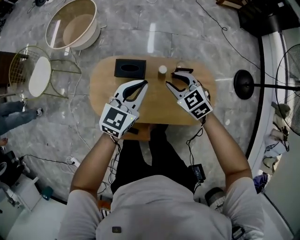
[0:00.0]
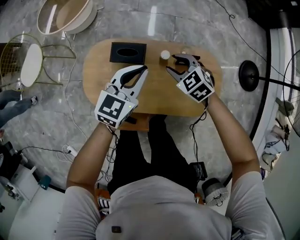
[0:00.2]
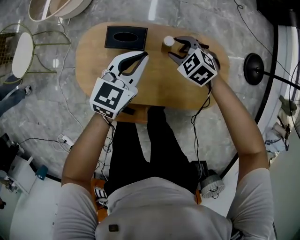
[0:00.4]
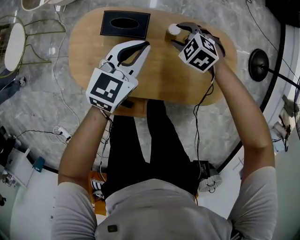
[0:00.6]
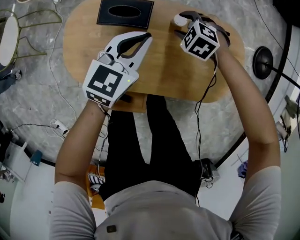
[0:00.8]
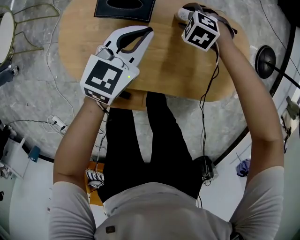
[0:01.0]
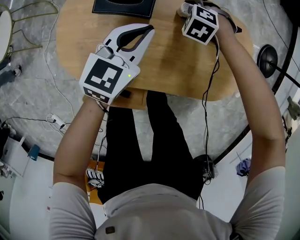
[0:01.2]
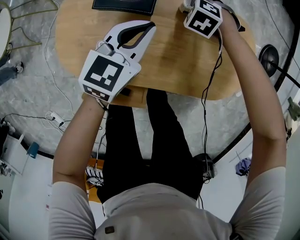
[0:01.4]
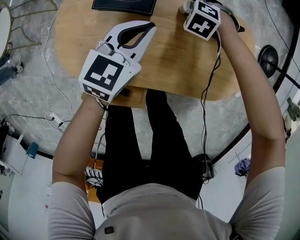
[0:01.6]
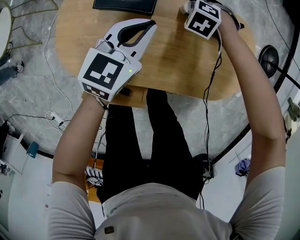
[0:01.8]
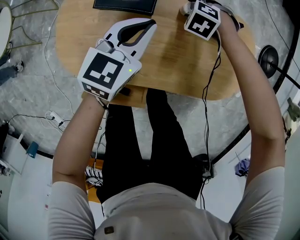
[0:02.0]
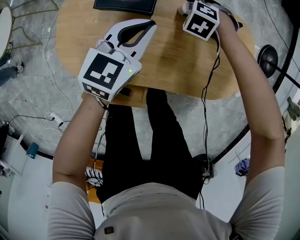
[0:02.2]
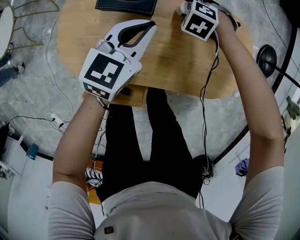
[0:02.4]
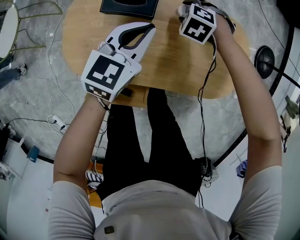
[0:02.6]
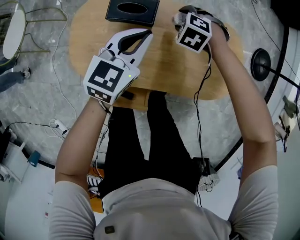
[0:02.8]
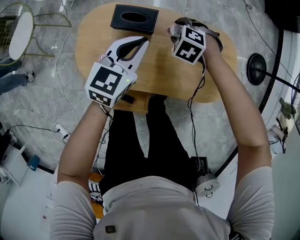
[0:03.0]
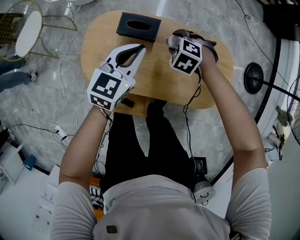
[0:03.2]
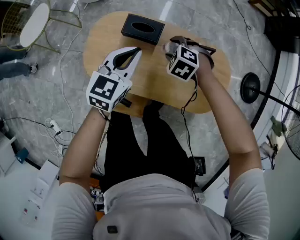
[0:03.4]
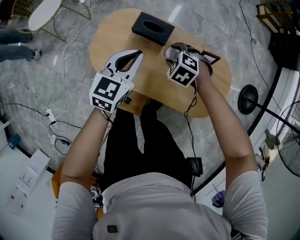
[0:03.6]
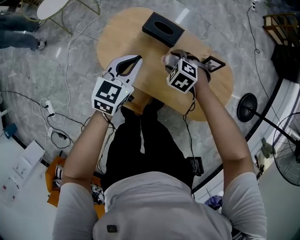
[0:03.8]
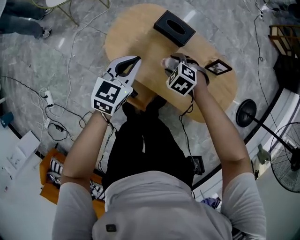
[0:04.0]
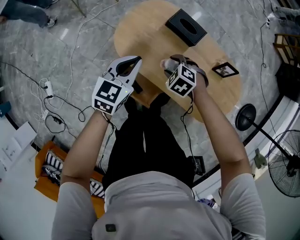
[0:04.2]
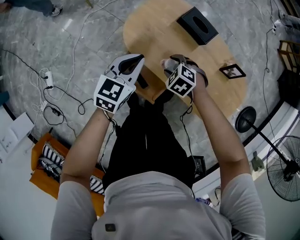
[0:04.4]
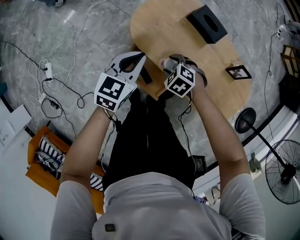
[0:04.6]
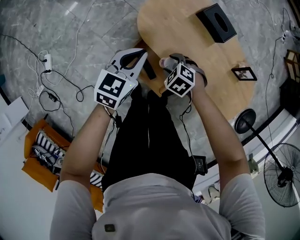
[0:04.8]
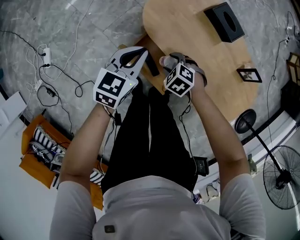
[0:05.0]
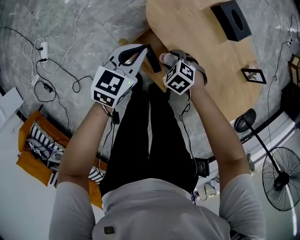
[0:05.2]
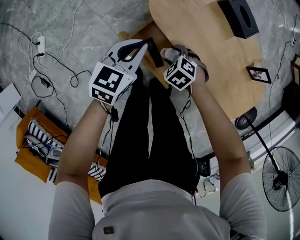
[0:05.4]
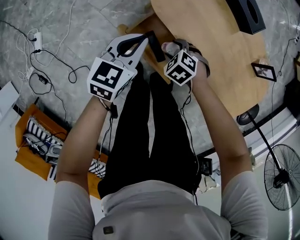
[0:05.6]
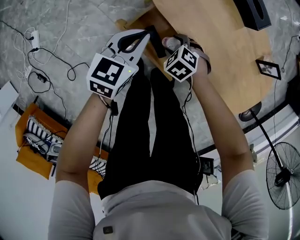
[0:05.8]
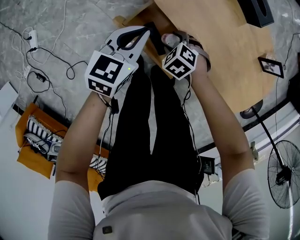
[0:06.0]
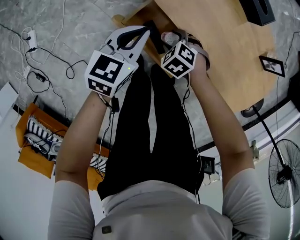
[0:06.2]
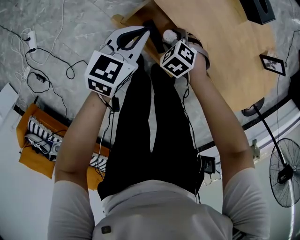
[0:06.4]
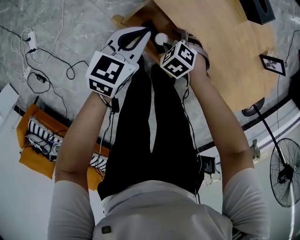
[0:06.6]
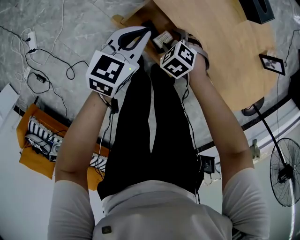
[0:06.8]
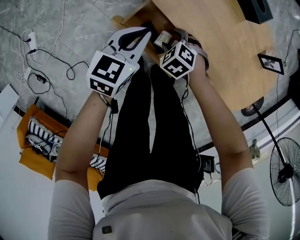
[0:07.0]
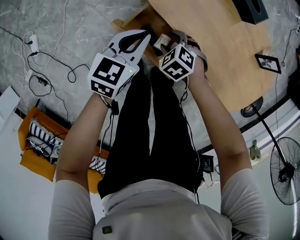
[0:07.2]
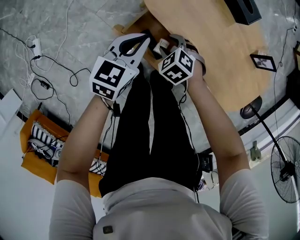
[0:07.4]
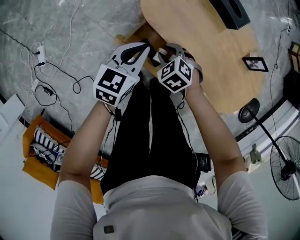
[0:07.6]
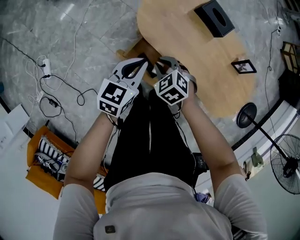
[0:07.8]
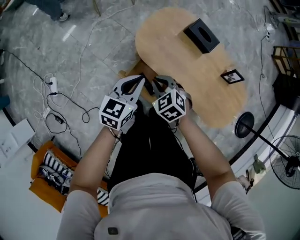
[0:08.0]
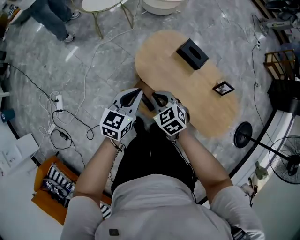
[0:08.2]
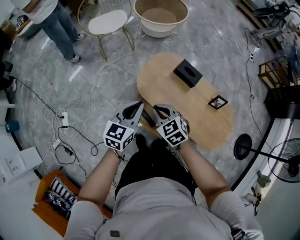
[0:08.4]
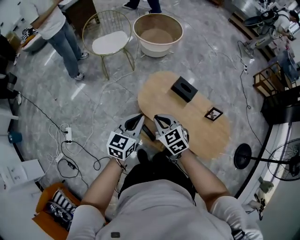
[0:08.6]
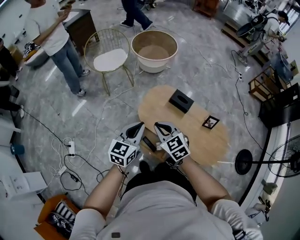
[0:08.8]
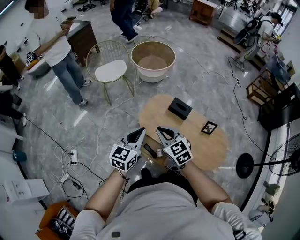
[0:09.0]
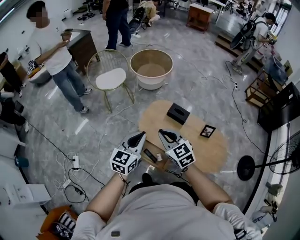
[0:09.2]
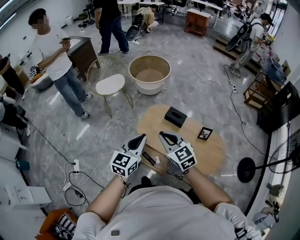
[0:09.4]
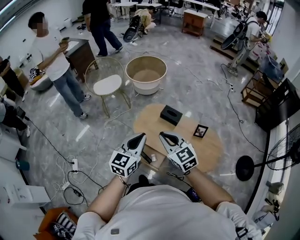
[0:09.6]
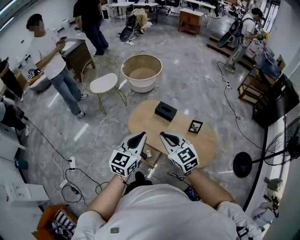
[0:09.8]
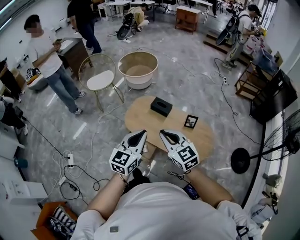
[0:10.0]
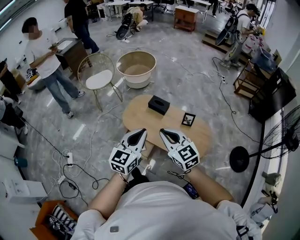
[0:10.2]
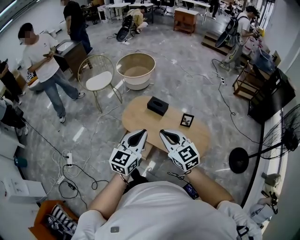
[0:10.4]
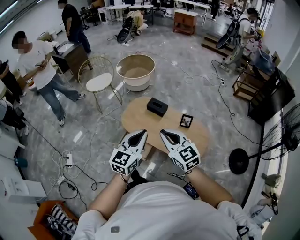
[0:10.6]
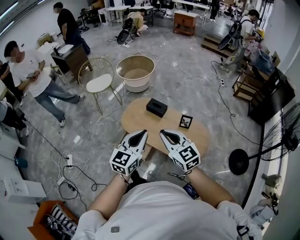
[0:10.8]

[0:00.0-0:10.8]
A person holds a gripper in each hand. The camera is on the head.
0:00.0 to 0:01.6: The two grippers go about 35 cm downward. The right gripper tips its fingers downward by about 40 degrees, and opens its fingers.
0:01.6 to 0:03.0: Both grippers travel together upward, approximately 15 cm.
0:03.0 to 0:04.6: The right gripper changes place by about 35 cm, and rotates roughly 30 degrees. The left gripper changes place by approximately 35 cm, and changes its angle by about 30 degrees.
0:04.6 to 0:06.2: The grippers both shift downward by some 20 cm.
0:06.2 to 0:07.8: Both grippers move upward, about 20 cm. The right gripper turns by approximately 20 degrees, and closes up.
0:07.8 to 0:09.2: The two grippers go about 40 cm upward. The left gripper turns by approximately 20 degrees, while the right gripper angles its fingers upward, by about 40 degrees.
0:09.2 to 0:10.8: Both grippers travel together to the right and backward, roughly 30 cm.

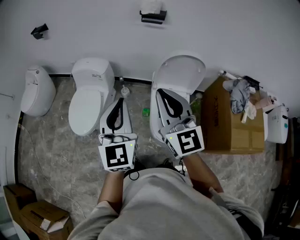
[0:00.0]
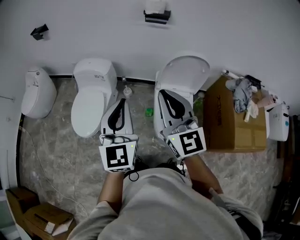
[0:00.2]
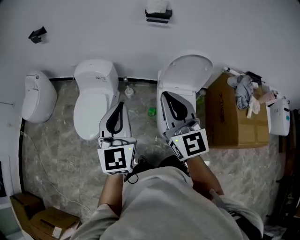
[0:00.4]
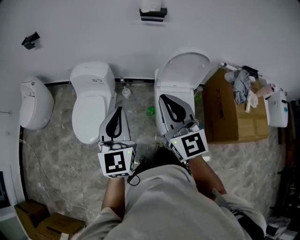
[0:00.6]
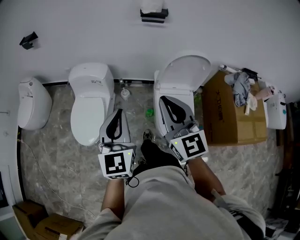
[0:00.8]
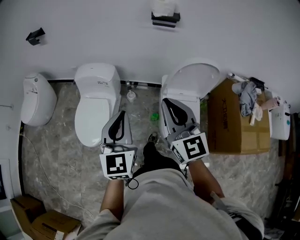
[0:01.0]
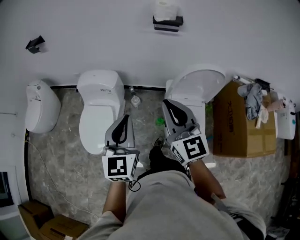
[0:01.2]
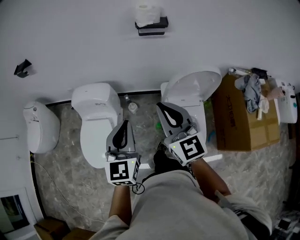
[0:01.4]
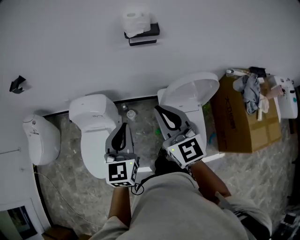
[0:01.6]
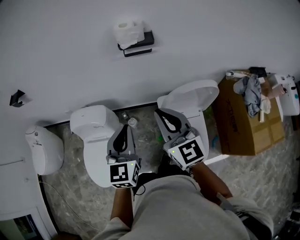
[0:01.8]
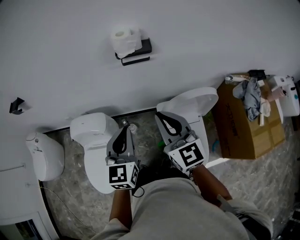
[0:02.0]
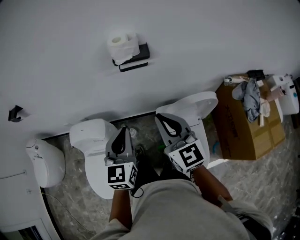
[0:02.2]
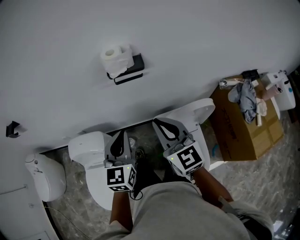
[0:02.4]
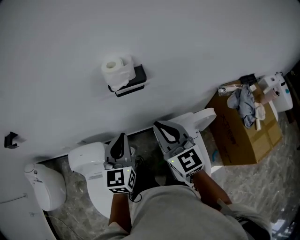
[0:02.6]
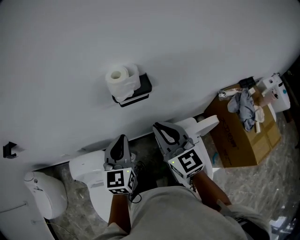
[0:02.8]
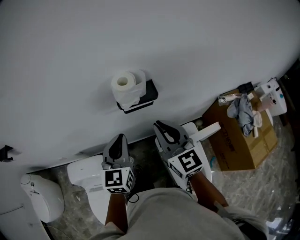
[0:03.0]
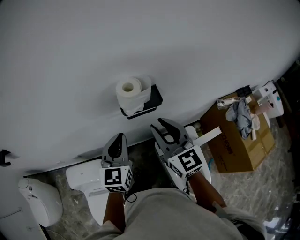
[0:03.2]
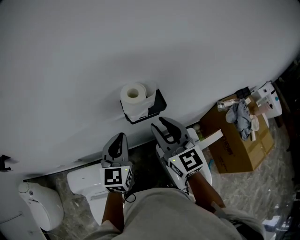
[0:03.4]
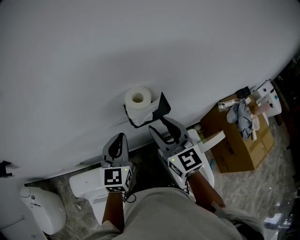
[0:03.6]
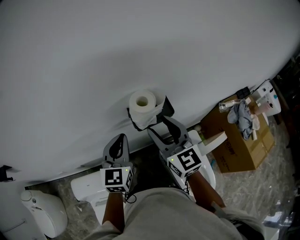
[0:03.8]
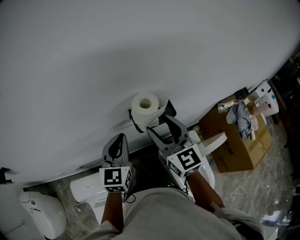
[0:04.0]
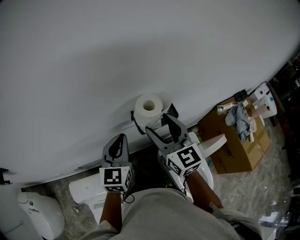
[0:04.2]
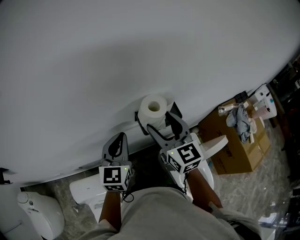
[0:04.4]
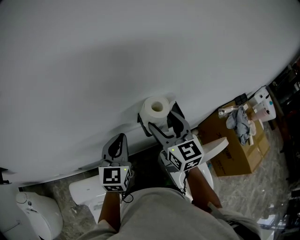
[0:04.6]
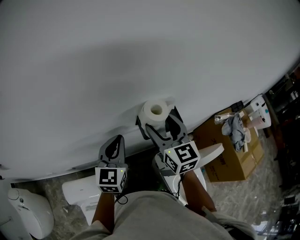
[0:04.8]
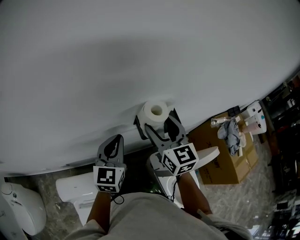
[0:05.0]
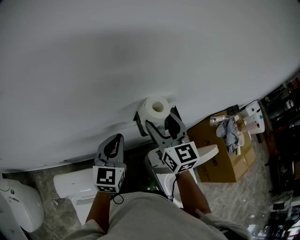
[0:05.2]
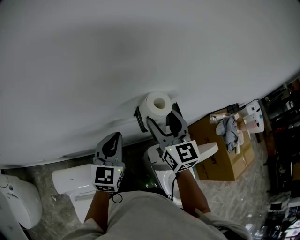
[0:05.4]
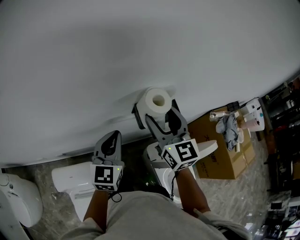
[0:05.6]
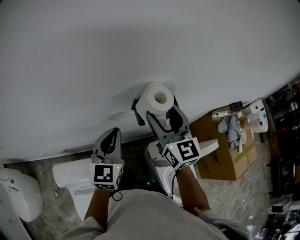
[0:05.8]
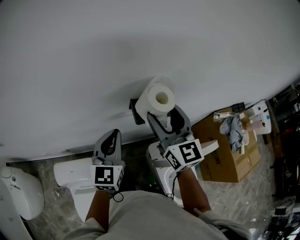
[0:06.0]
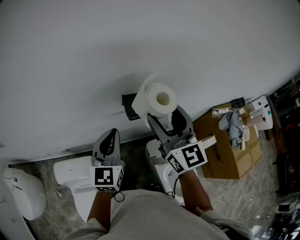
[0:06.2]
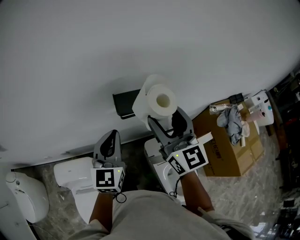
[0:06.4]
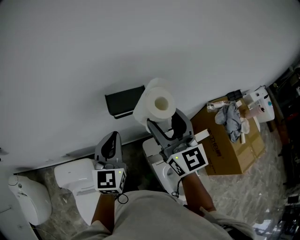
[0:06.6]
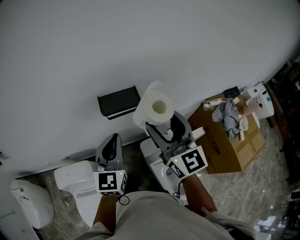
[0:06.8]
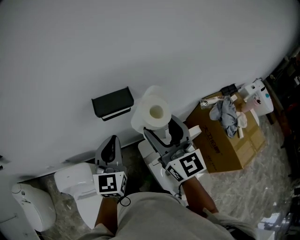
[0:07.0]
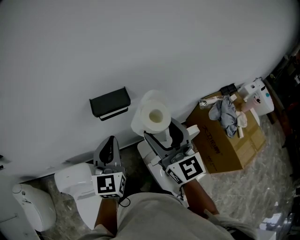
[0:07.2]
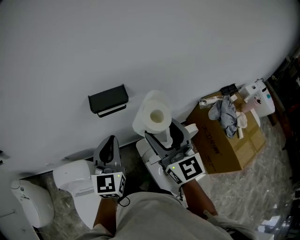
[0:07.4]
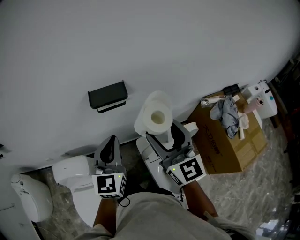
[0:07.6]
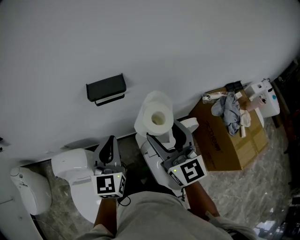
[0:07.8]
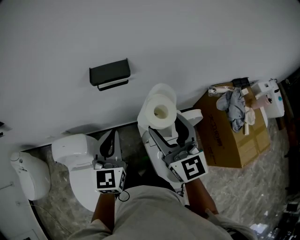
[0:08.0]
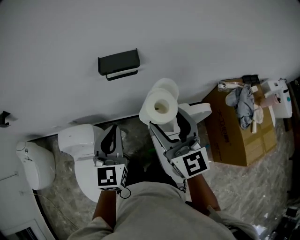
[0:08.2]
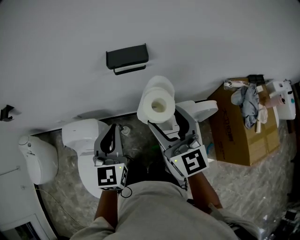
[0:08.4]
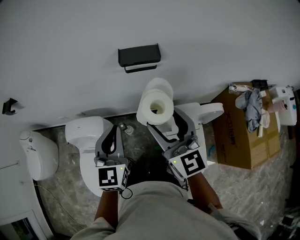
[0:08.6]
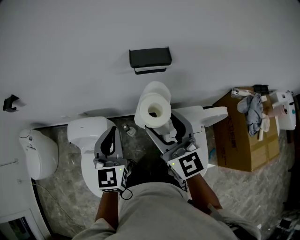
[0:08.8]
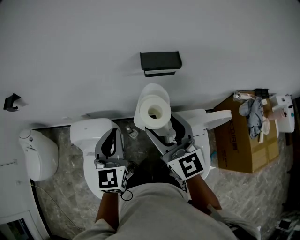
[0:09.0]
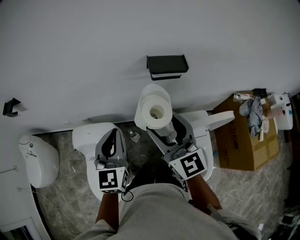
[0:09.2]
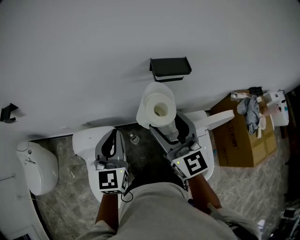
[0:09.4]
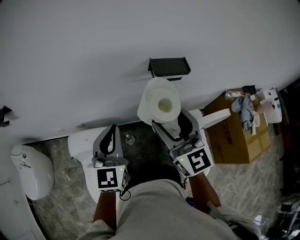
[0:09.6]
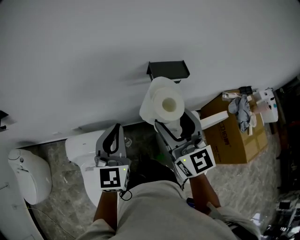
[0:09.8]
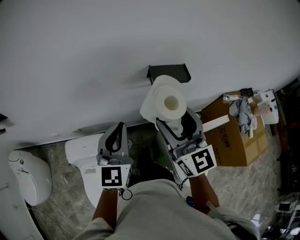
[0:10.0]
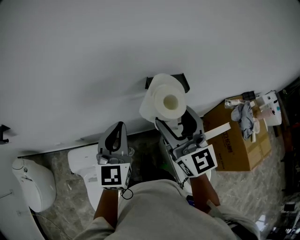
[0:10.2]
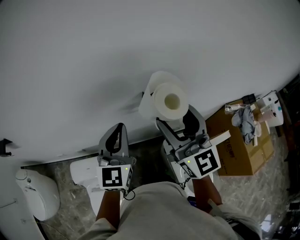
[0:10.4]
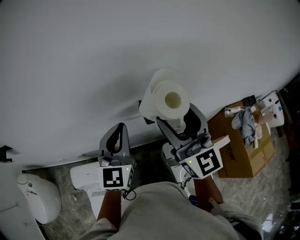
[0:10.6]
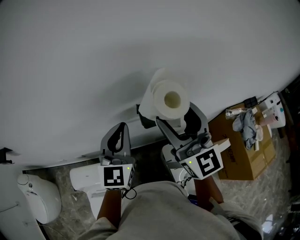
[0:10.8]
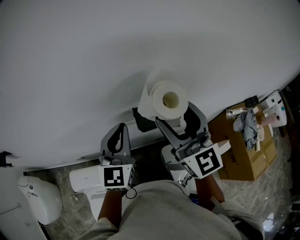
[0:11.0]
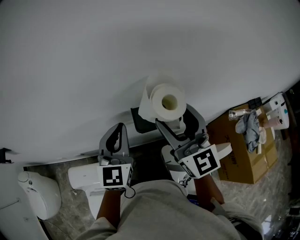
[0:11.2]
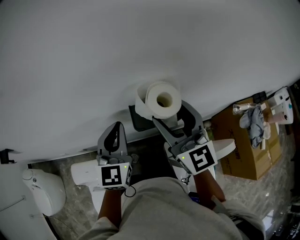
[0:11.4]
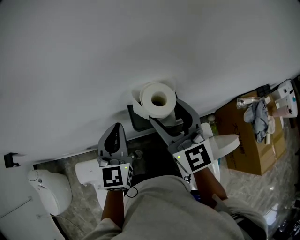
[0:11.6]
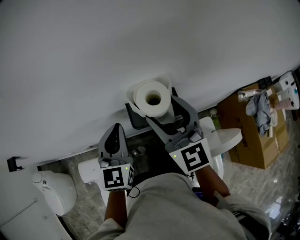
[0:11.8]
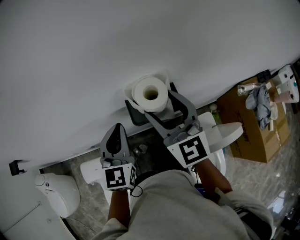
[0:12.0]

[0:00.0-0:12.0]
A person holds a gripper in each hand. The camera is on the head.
0:00.0 to 0:01.6: Both grippers travel together forward, about 25 cm. The left gripper turns by roughly 20 degrees.
0:01.6 to 0:03.0: The grippers both shift forward by some 30 cm.
0:03.0 to 0:04.4: The grippers both shift forward and to the left by approximately 15 cm. The right gripper opens up.
0:04.4 to 0:06.0: The left gripper shifts approximately 5 cm backward.
0:06.0 to 0:07.6: The grippers both shift to the right and backward by some 25 cm.
0:07.6 to 0:09.0: Both grippers travel together to the left, roughly 20 cm.
0:09.0 to 0:10.4: The left gripper goes roughly 20 cm forward; the right gripper heads forward and upward, covering approximately 20 cm.
0:10.4 to 0:12.0: The left gripper moves forward, to the right and downward, roughly 15 cm, while the right gripper moves forward, downward and to the right, some 15 cm.

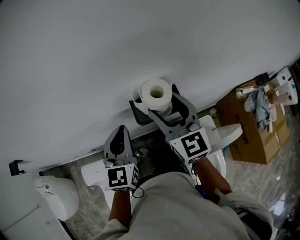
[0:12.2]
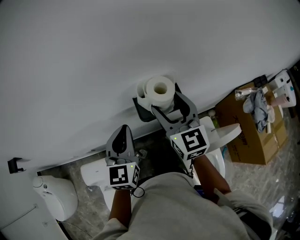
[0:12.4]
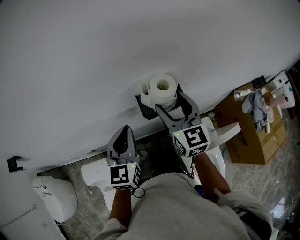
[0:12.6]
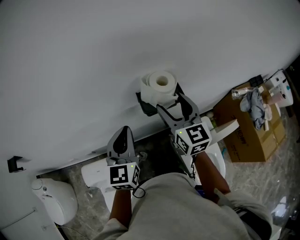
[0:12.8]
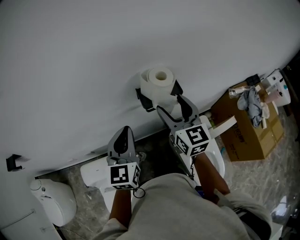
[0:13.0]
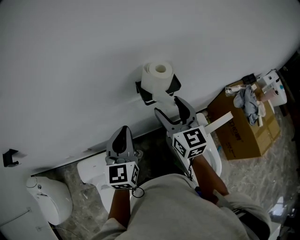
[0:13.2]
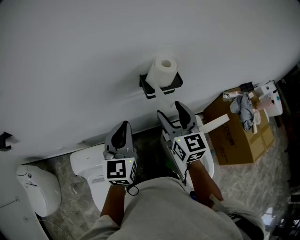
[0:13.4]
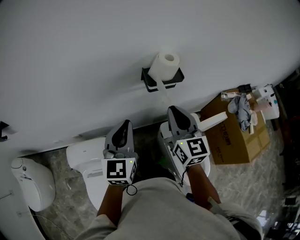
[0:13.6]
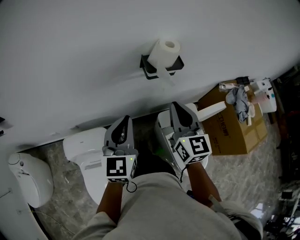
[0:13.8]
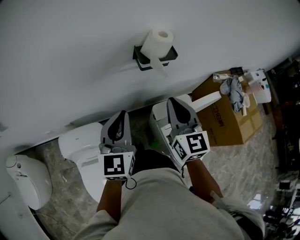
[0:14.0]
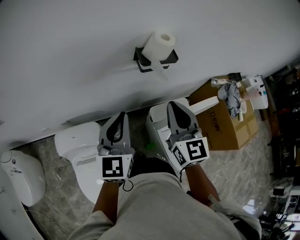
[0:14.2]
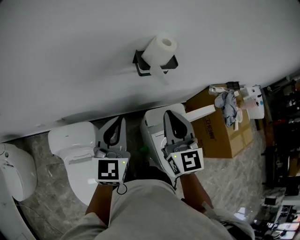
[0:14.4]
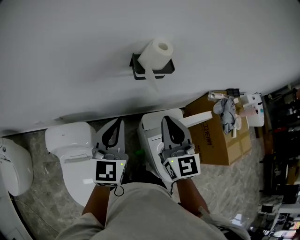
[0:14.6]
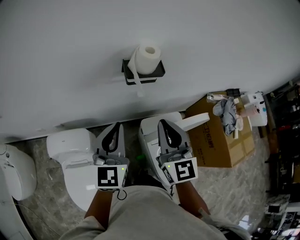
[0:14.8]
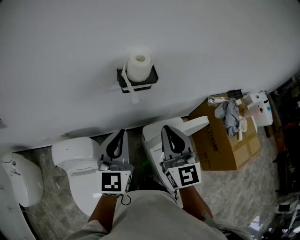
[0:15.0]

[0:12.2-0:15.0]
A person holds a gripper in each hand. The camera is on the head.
0:12.2 to 0:13.6: The grippers both shift backward by about 15 cm. The right gripper closes up.
0:13.6 to 0:15.0: The right gripper goes about 10 cm to the right and backward. Meanwhile the left gripper is displaced to the right by about 10 cm.
